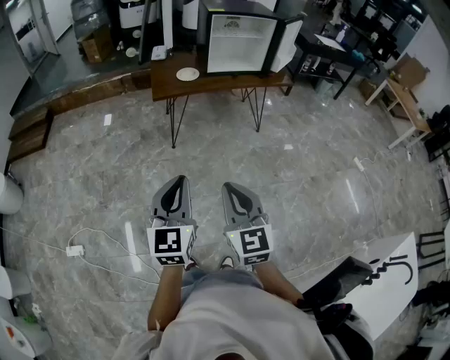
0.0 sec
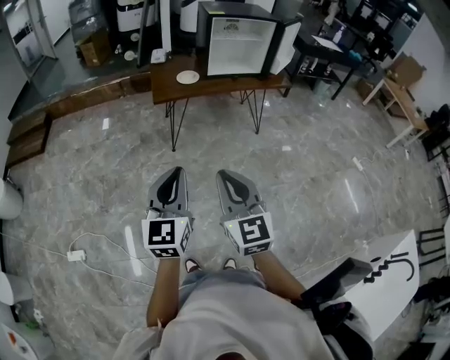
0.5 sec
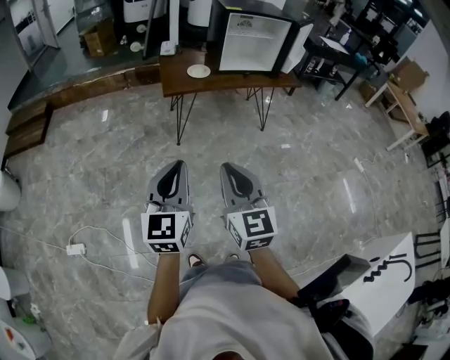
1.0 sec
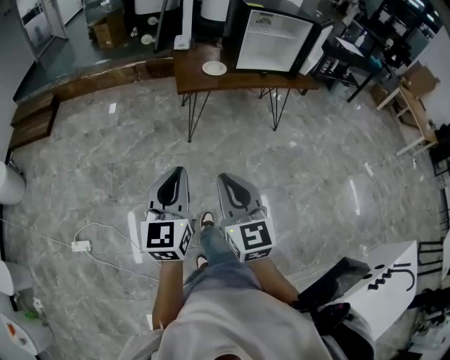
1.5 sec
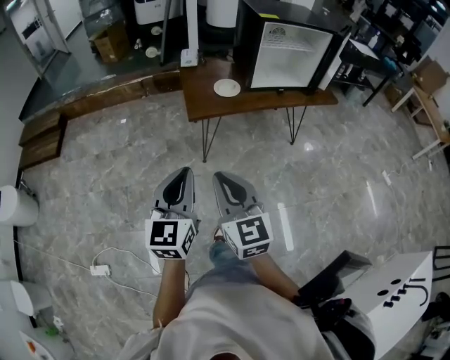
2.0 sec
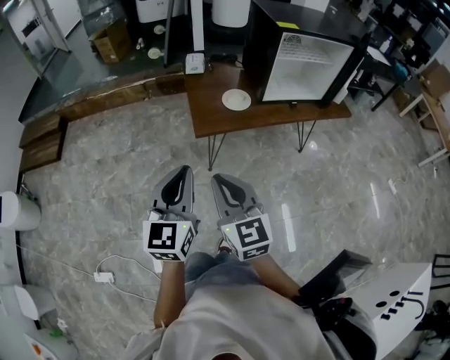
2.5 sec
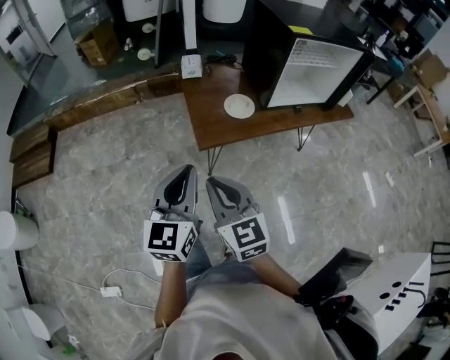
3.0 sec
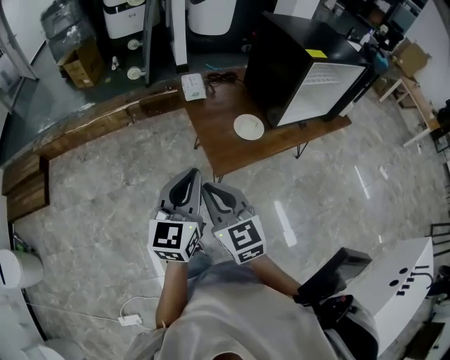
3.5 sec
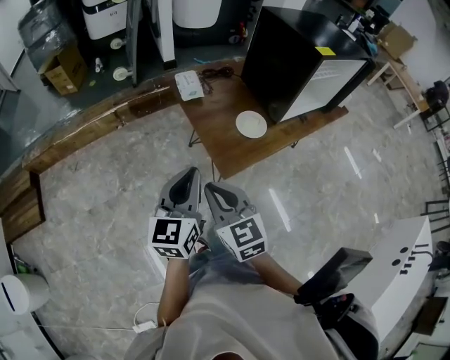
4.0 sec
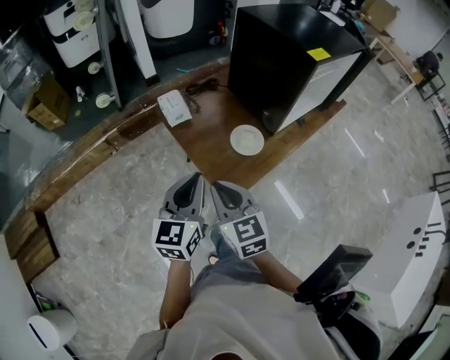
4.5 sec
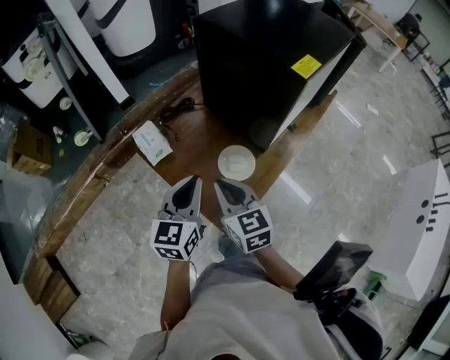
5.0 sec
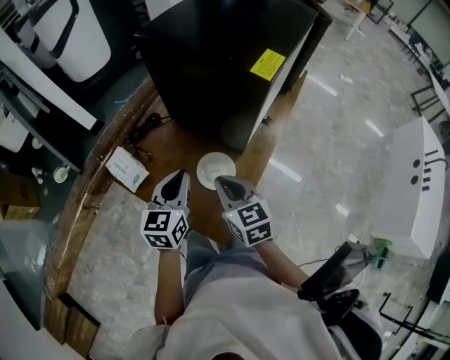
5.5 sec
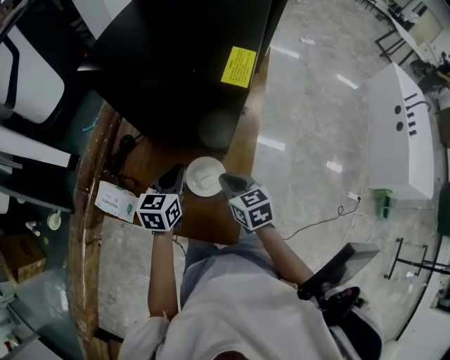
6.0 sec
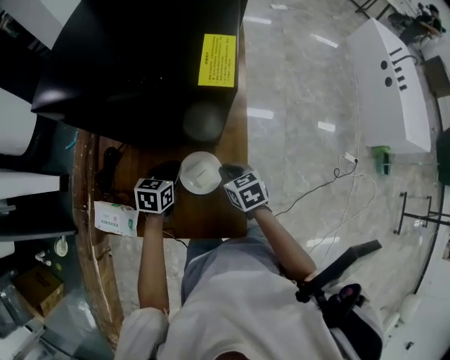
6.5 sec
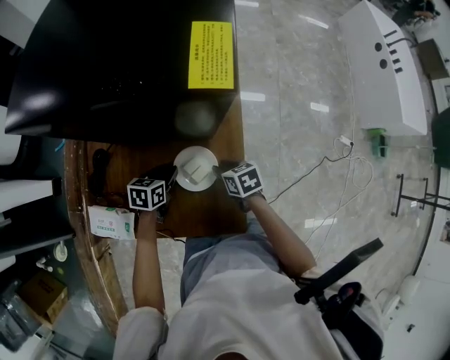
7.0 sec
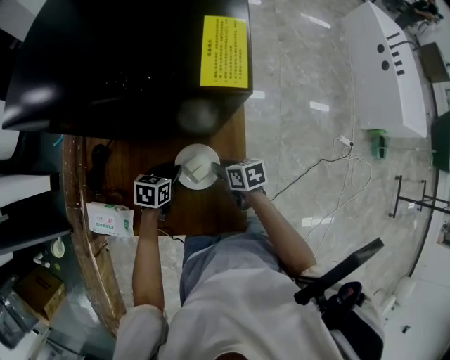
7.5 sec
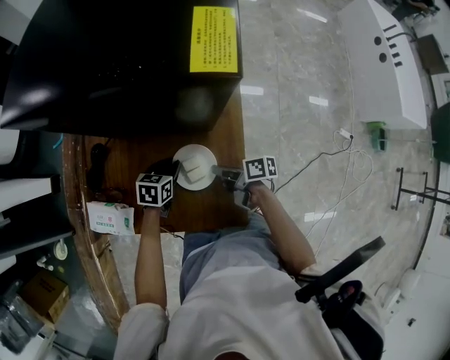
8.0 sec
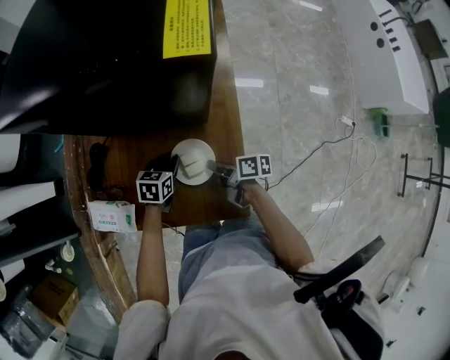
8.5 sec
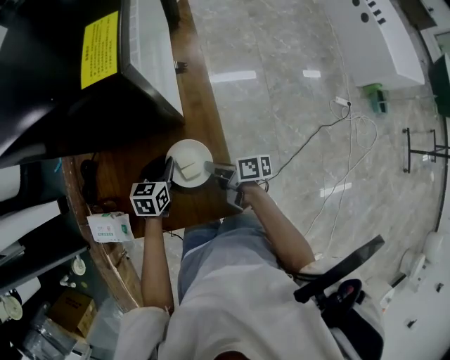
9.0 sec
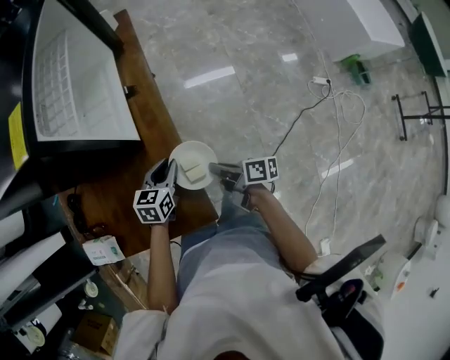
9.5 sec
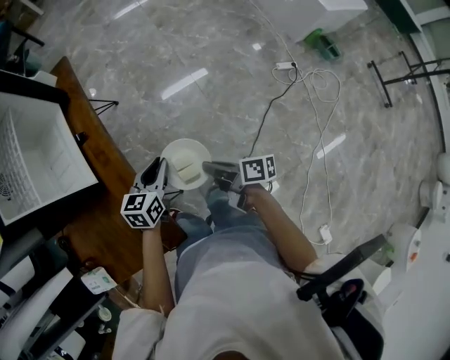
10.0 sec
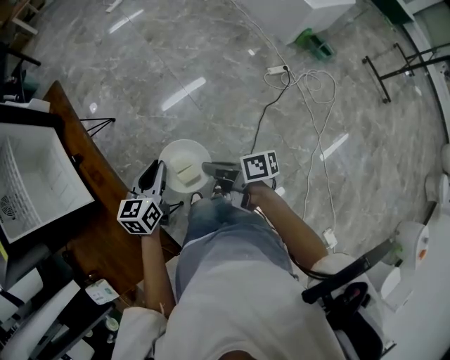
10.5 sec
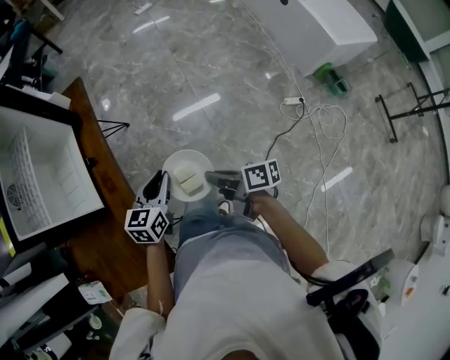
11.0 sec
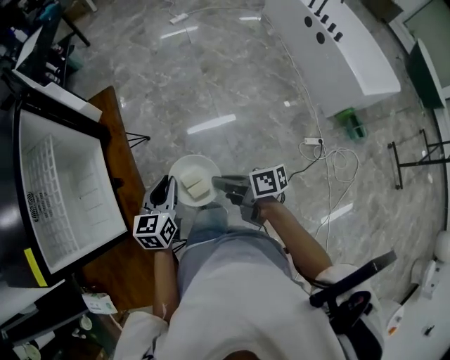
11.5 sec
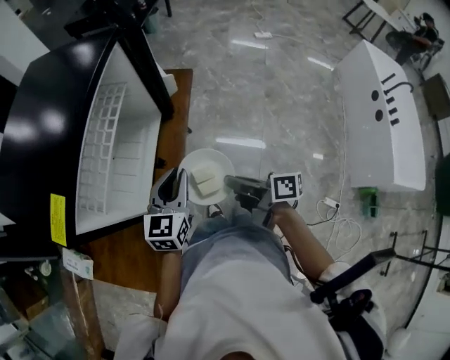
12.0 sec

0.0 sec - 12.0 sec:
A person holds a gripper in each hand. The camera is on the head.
0.0 sec - 2.0 sec: The pair of grippers is taken forward and to the left, approximately 50 cm.
2.0 sec - 4.0 sec: The pair of grippers is taken forward and to the left, roughly 80 cm. The left gripper swivels about 20 degrees.
4.0 sec - 6.0 sec: The pair of grippers is taken about 80 cm. The left gripper rotates about 60 degrees. Meanwhile the right gripper rotates about 60 degrees.
6.0 sec - 8.0 sec: Both grippers move downward, roughly 25 cm. The right gripper rotates around the line of its fingers by approximately 60 degrees, clockwise from behind, while the left gripper changes its angle by roughly 30 degrees.
8.0 sec - 10.0 sec: Both grippers are carried to the right, about 70 cm. The left gripper turns by approximately 30 degrees. The right gripper turns by approximately 30 degrees.
10.0 sec - 12.0 sec: The pair of grippers is taken roughly 50 cm. The right gripper rotates roughly 40 degrees, while the left gripper changes its angle by approximately 50 degrees.

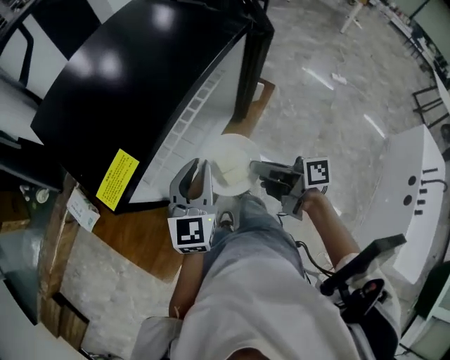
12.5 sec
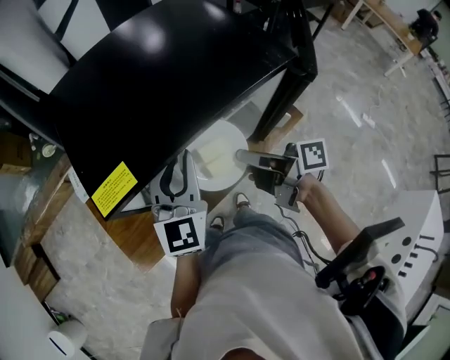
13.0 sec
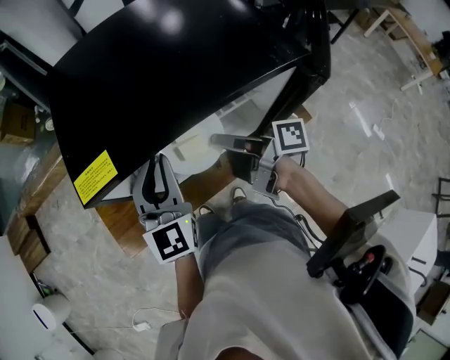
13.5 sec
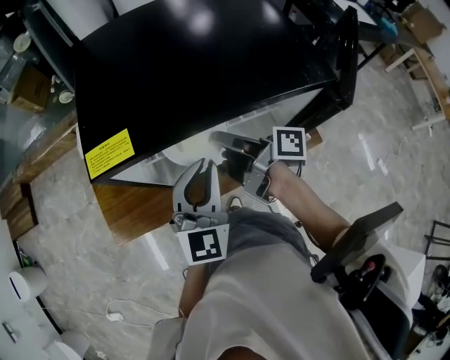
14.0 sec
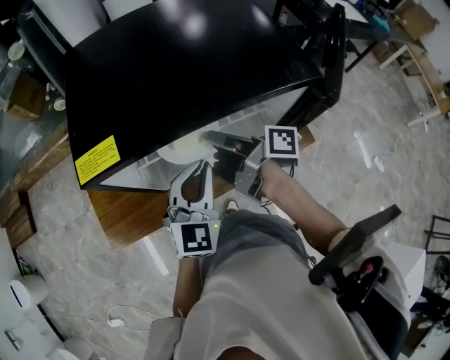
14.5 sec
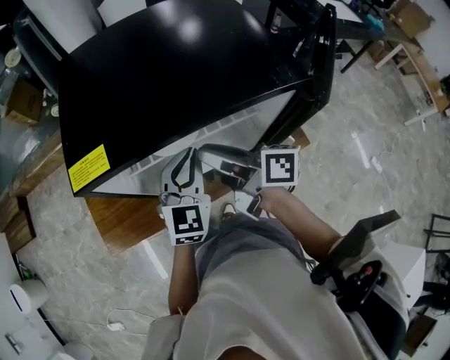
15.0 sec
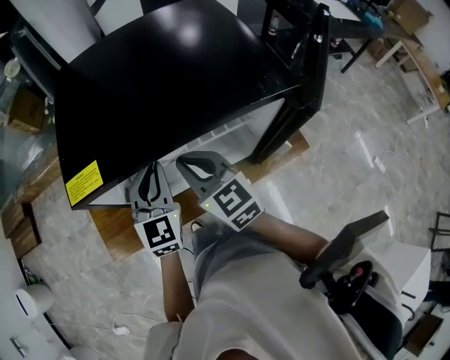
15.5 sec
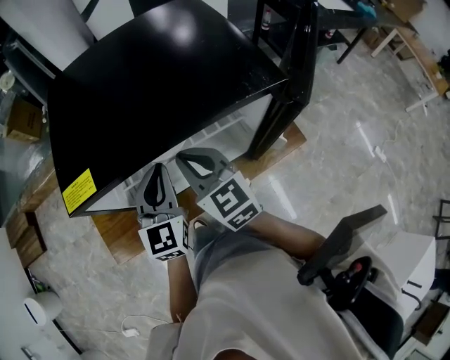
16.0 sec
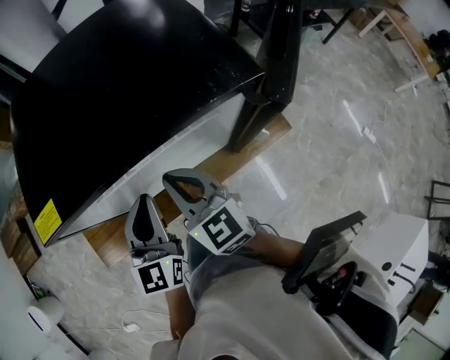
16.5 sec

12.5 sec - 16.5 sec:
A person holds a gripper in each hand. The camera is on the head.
12.5 sec - 14.5 sec: The right gripper changes place by approximately 20 cm, and turns by approximately 30 degrees, while the left gripper turns by some 30 degrees.
14.5 sec - 16.5 sec: The right gripper rolls counterclockwise, seen from behind, by about 80 degrees, and opens, then closes again. The left gripper turns by about 20 degrees.

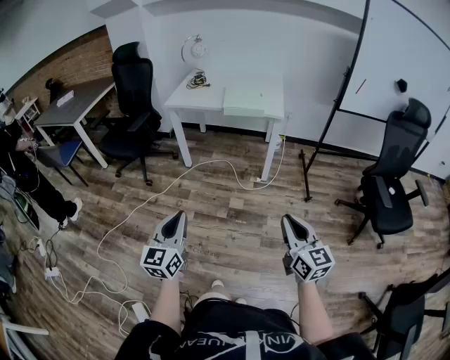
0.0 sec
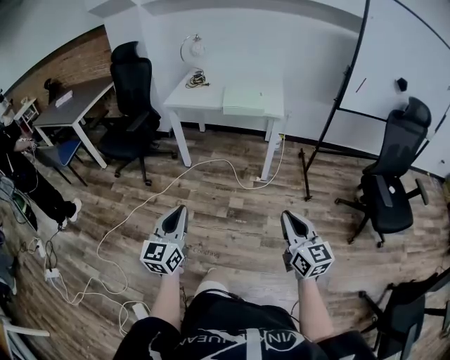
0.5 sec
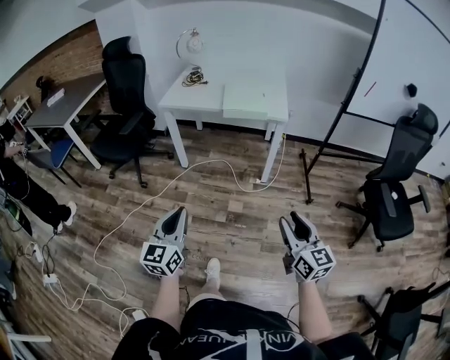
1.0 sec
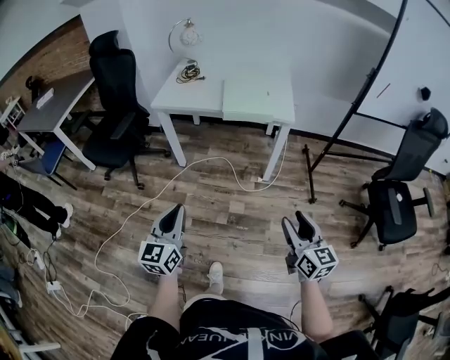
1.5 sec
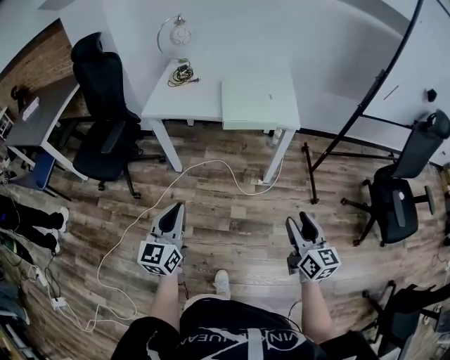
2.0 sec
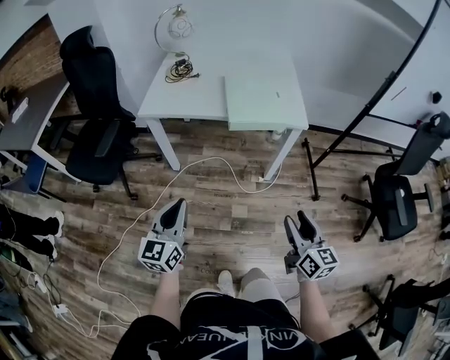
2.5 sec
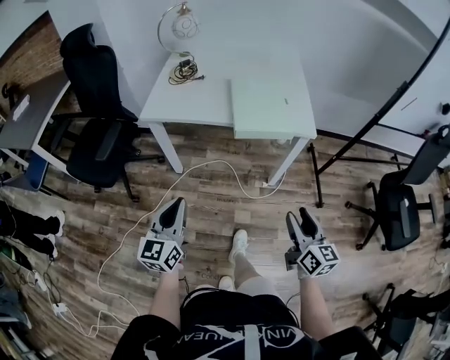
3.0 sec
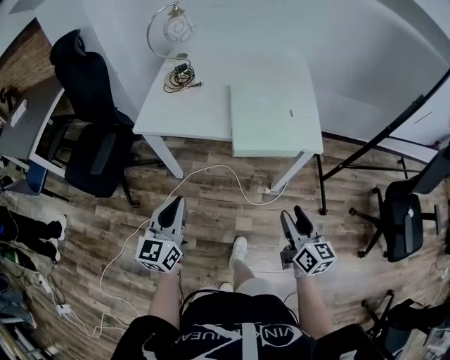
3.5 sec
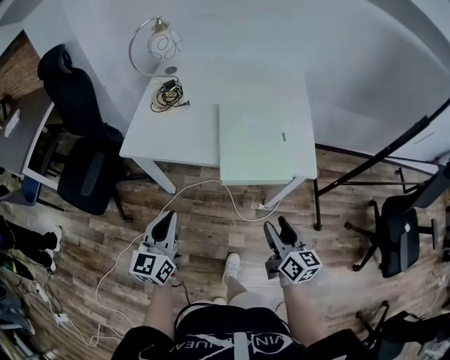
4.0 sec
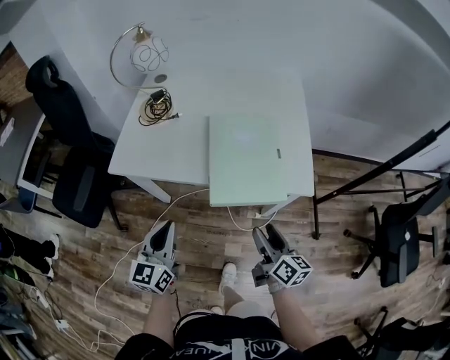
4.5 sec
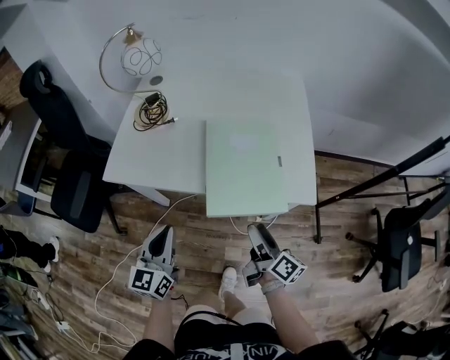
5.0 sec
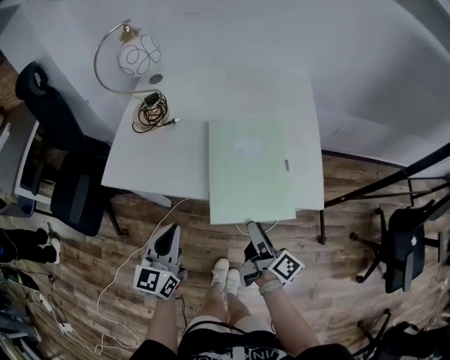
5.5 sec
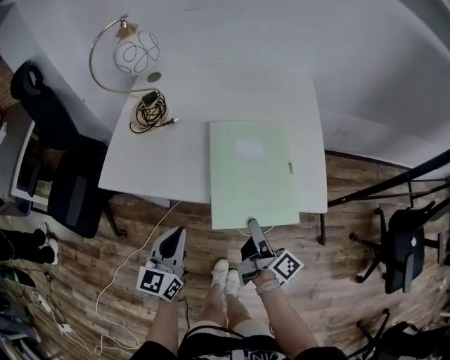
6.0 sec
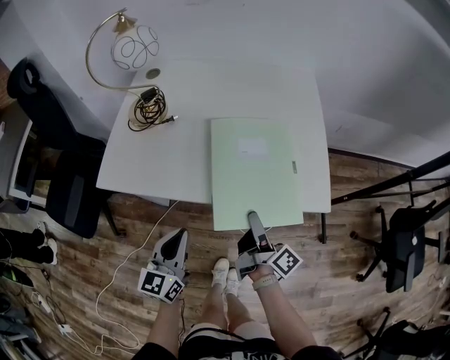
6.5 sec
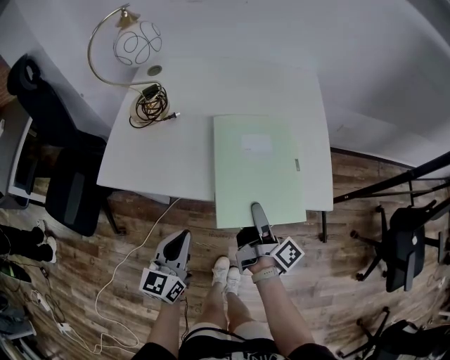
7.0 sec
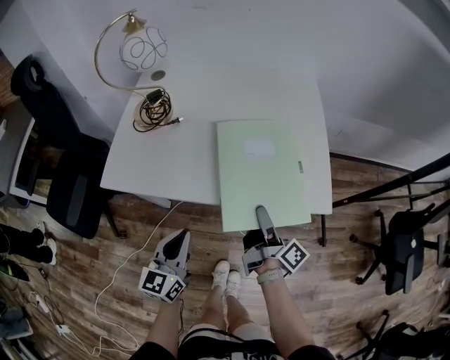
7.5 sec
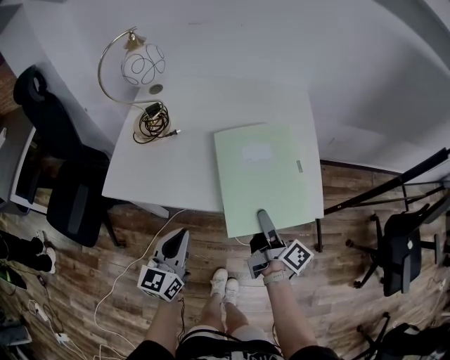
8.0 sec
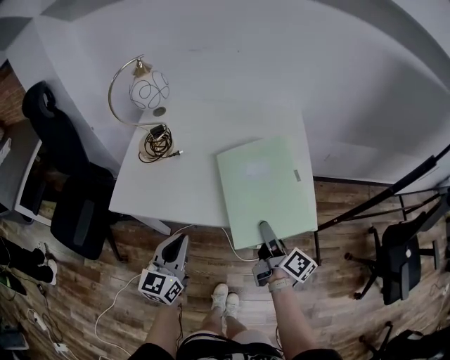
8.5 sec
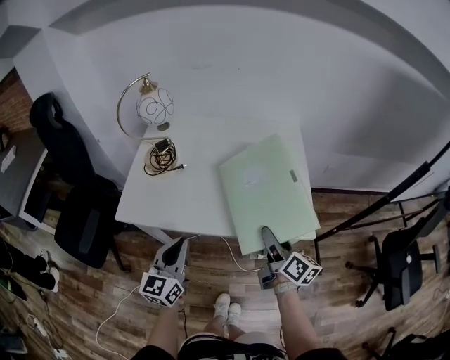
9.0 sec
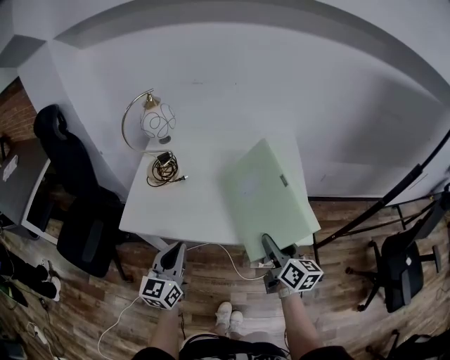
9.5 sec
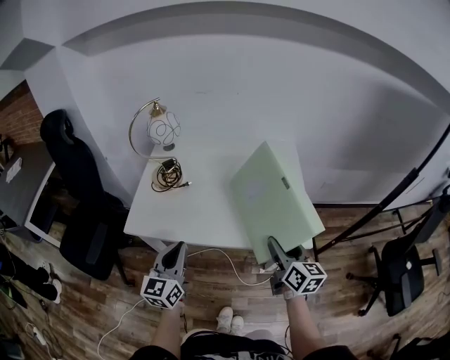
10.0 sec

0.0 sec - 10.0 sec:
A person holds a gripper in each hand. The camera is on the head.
0.0 sec - 2.0 sec: Both grippers move forward, some 30 cm. The right gripper opens up.
2.0 sec - 4.0 sec: Both grippers travel together forward, approximately 30 cm.
4.0 sec - 6.0 sec: The right gripper is displaced forward by approximately 15 cm, and rolls clockwise, seen from behind, by approximately 40 degrees, while the left gripper goes about 15 cm forward, downward and to the right.
6.0 sec - 8.0 sec: There are only small adjustments of the grippers.
8.0 sec - 10.0 sec: Both grippers travel together upward, about 10 cm. The right gripper rolls counterclockwise, seen from behind, by approximately 40 degrees.

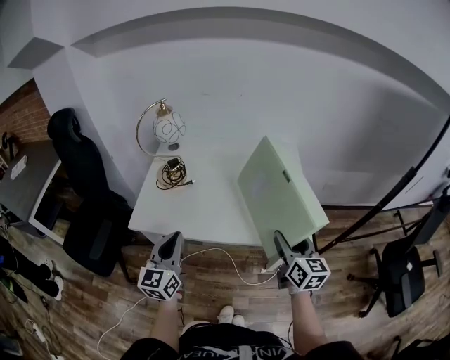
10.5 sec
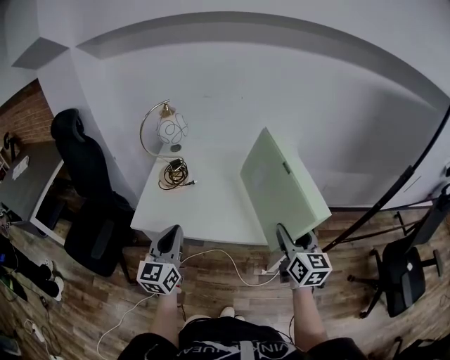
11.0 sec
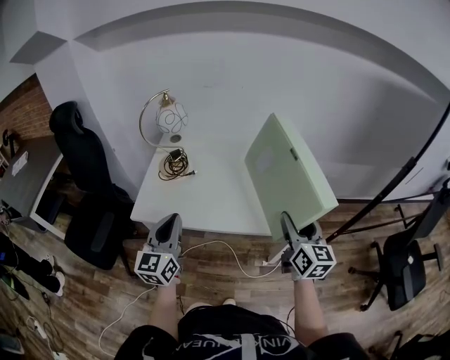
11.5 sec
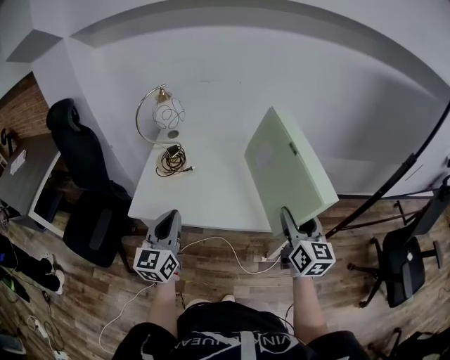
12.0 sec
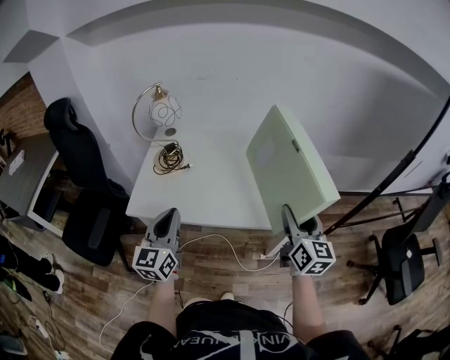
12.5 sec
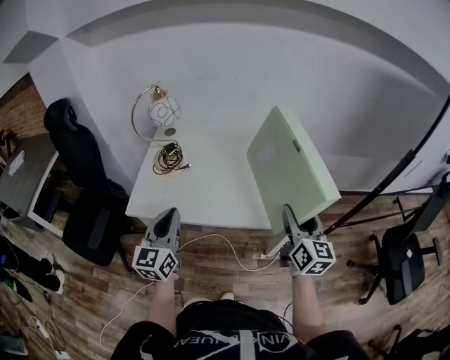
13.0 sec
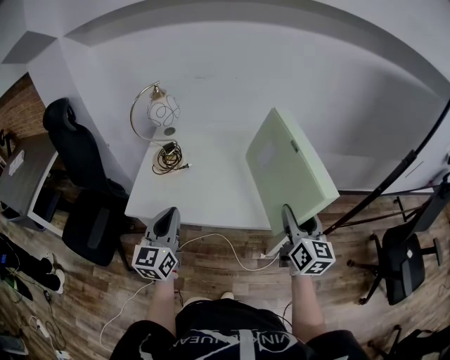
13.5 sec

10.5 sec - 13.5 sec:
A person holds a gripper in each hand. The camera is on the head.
10.5 sec - 13.5 sec: The grippers make only small movements.
